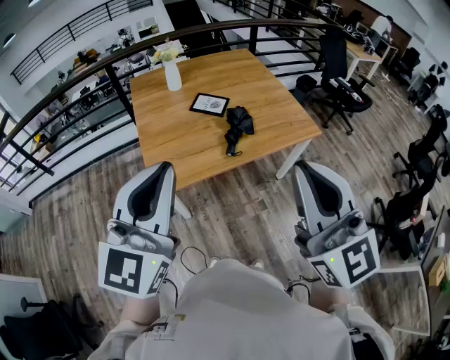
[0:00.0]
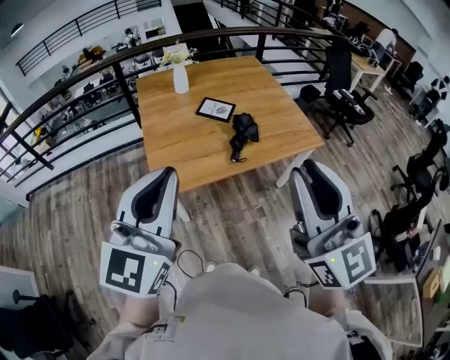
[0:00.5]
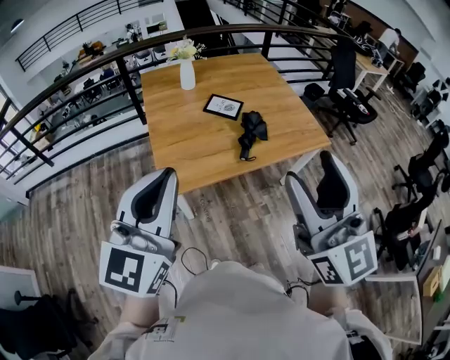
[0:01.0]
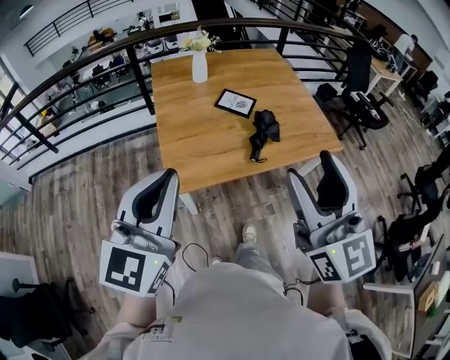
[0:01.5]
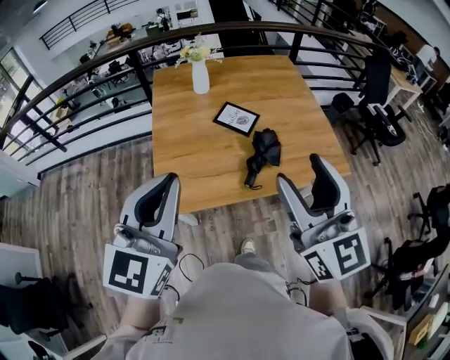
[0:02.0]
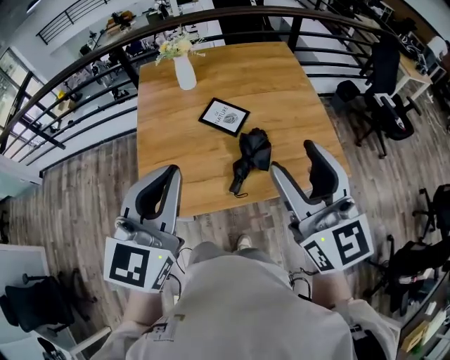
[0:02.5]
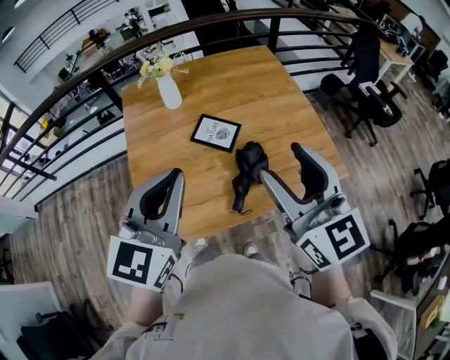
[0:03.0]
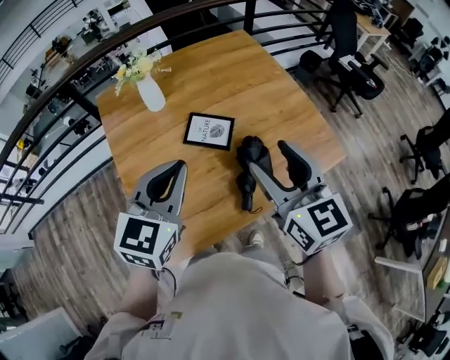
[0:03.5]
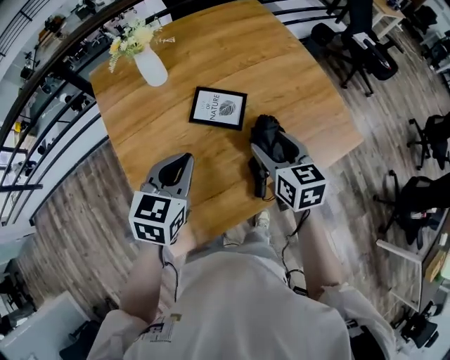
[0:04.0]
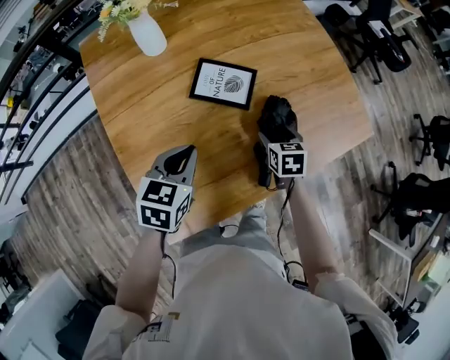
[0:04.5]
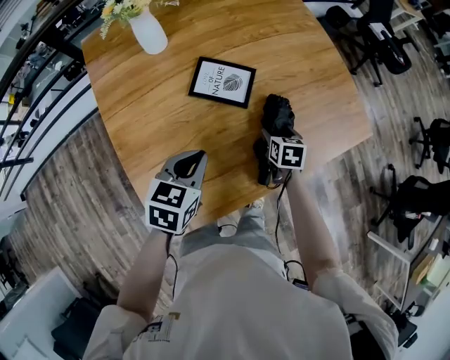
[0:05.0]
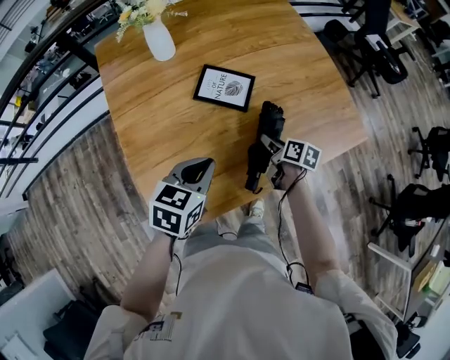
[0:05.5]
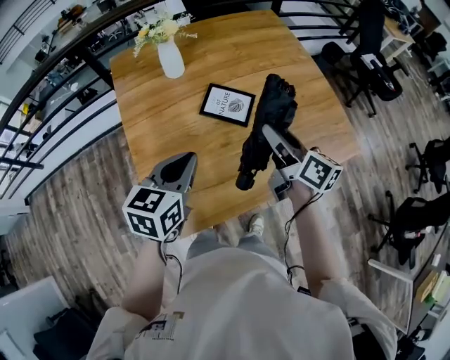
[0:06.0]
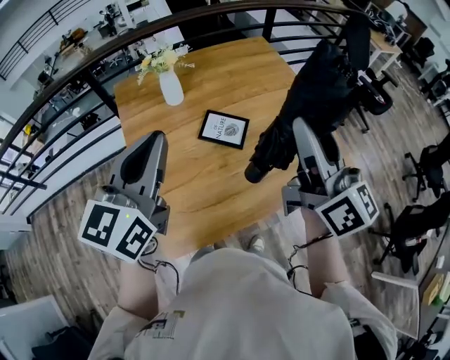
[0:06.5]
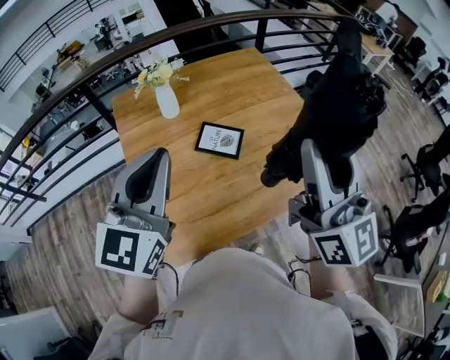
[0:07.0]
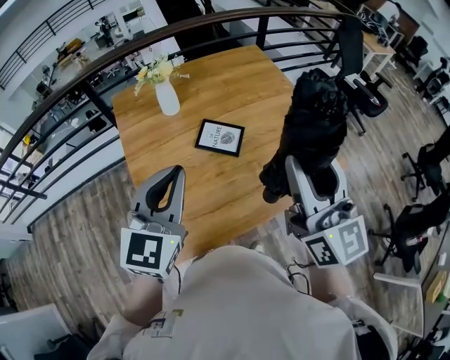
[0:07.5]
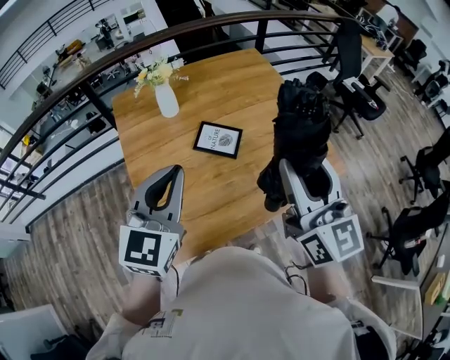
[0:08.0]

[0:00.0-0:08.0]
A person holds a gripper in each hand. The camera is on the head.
0.0 to 2.0 s: The two grippers go about 20 cm forward. The right gripper opens up.
2.0 to 4.0 s: Both grippers travel together forward and downward, some 40 cm. The right gripper tips its fingers downward by some 40 degrees. Meanwhile the left gripper tilts its fingers approximately 30 degrees downward.
4.0 to 6.0 s: The left gripper shifts about 5 cm backward, and moves some 10 cm downward and comes back, while the right gripper goes downward and returns, about 25 cm each way, and swivels about 40 degrees.
6.0 to 8.0 s: The left gripper heads upward, covering approximately 15 cm, and swivels some 30 degrees. The right gripper heads upward and backward, covering some 25 cm, and rolls counterclockwise, seen from behind, by about 40 degrees.

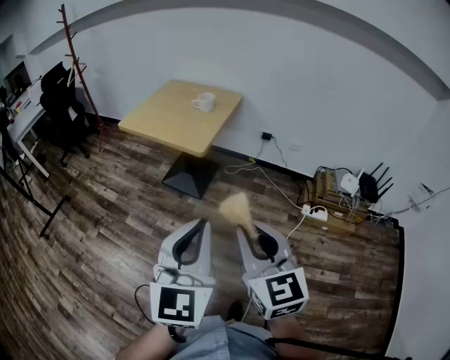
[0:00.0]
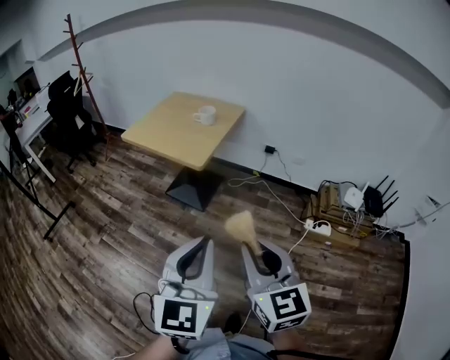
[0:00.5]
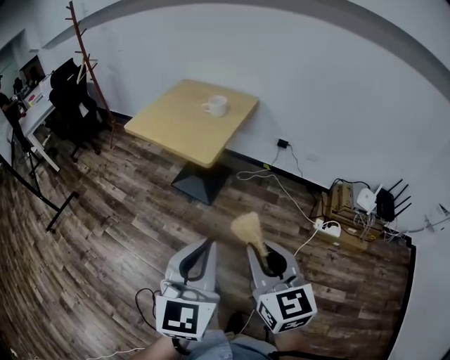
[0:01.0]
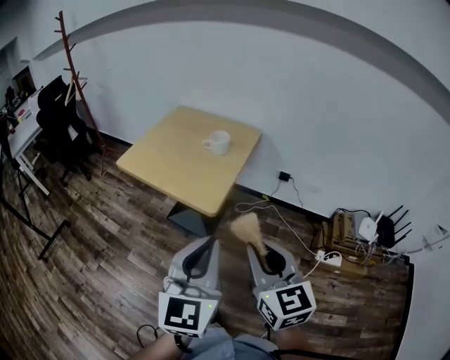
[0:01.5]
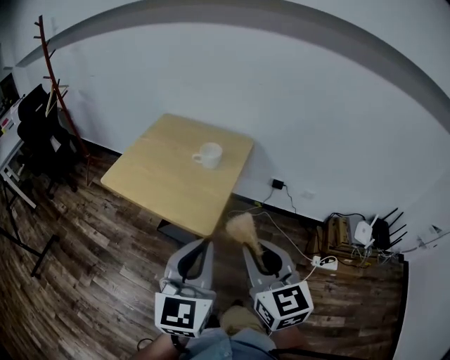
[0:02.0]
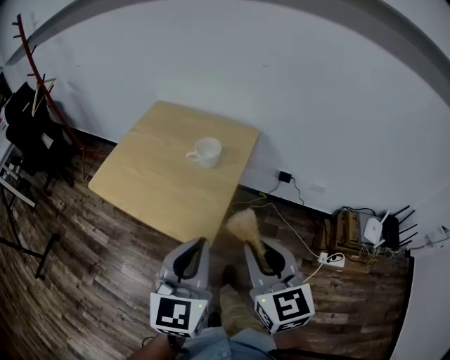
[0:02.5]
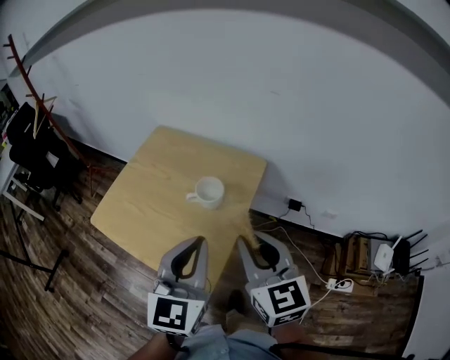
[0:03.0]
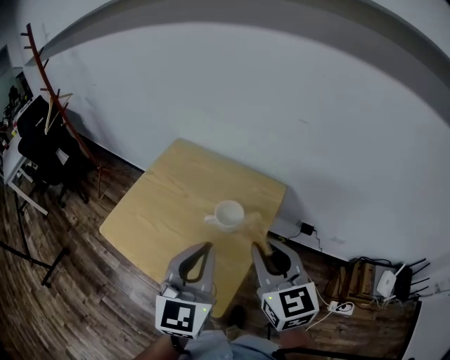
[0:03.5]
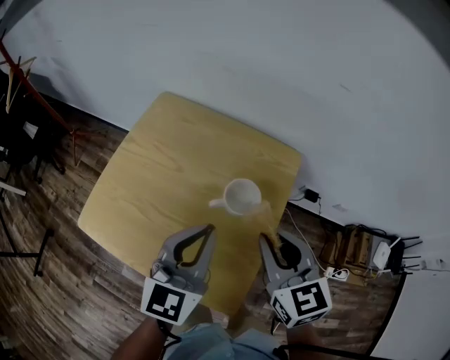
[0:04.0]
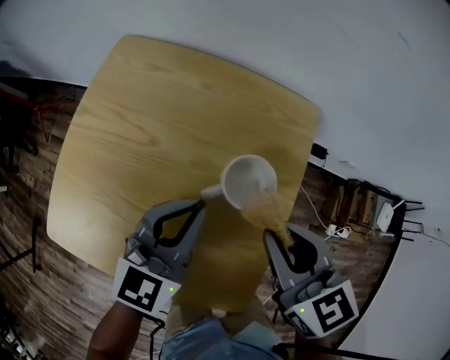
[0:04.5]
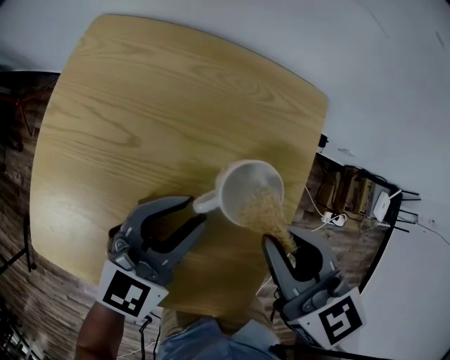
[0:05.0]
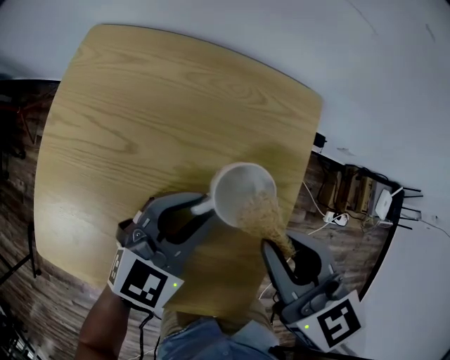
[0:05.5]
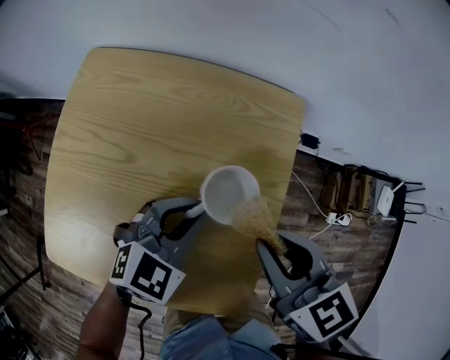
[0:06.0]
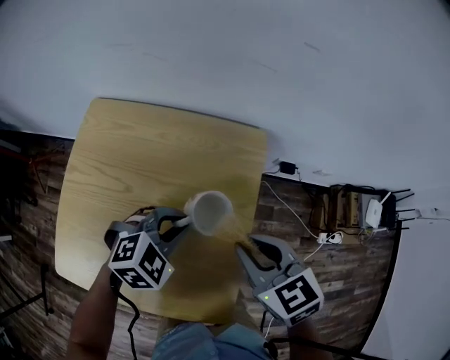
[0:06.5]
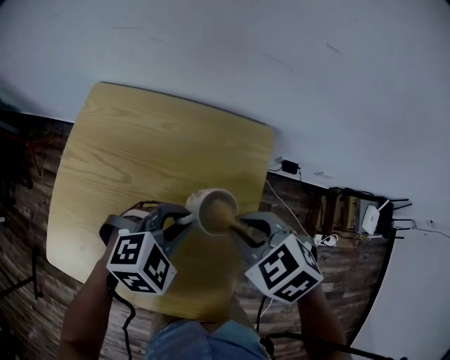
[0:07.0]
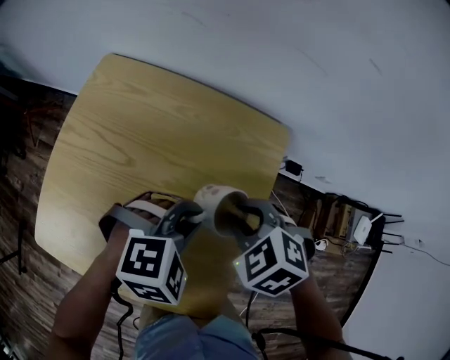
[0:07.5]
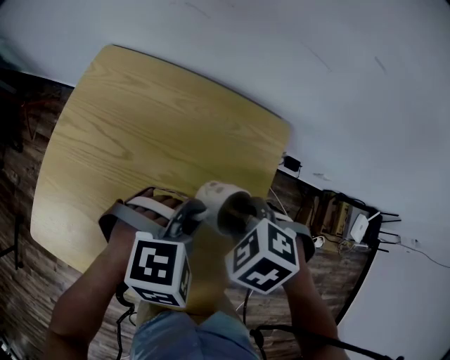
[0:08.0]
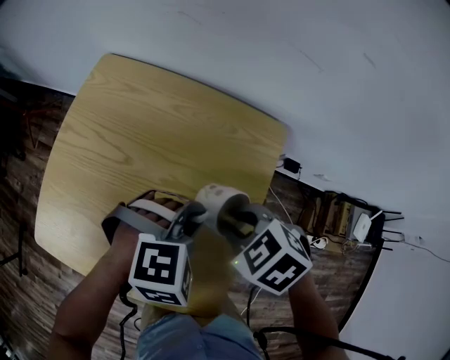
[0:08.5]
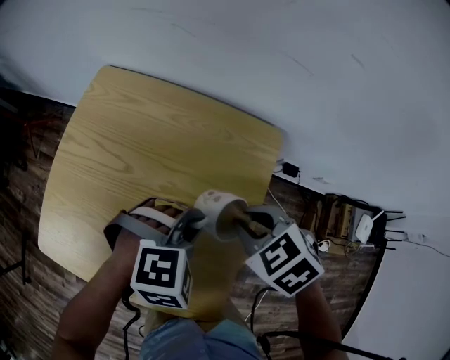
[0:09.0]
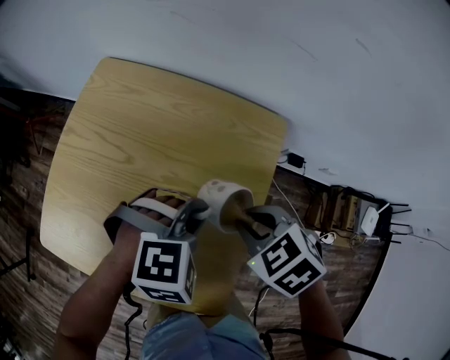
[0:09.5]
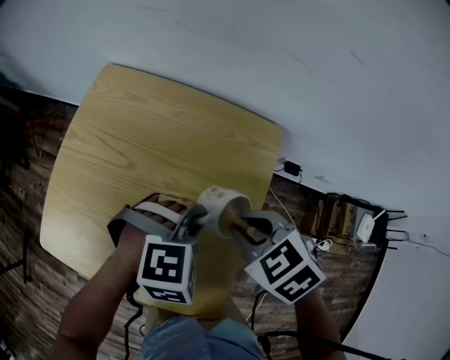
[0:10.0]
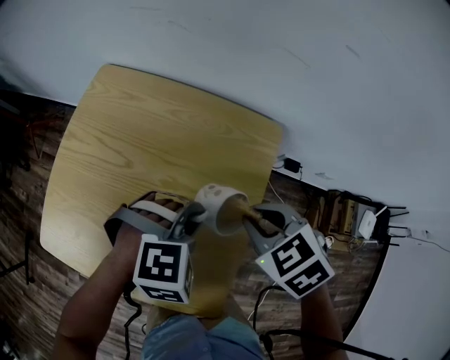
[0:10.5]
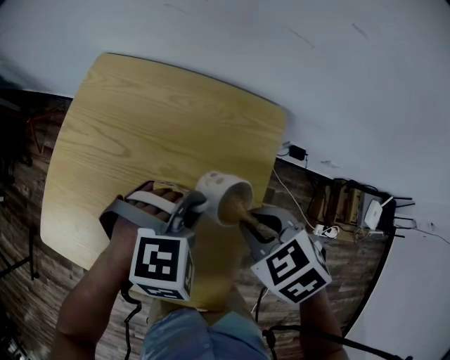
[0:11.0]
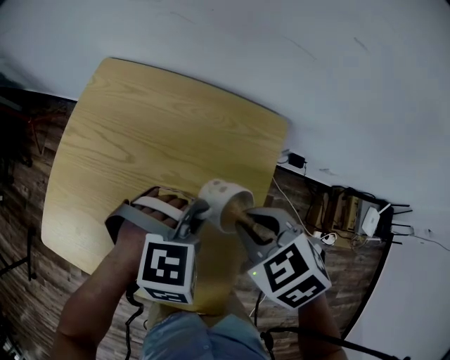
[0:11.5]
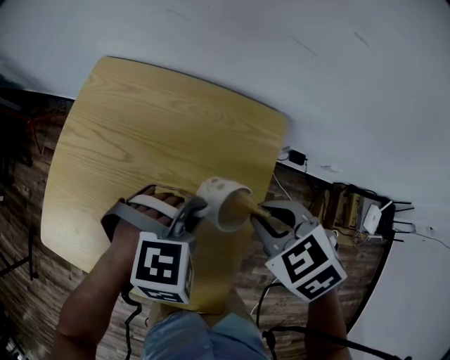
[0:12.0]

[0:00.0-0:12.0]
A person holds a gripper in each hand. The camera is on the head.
0.0 to 2.0 s: The two grippers go some 35 cm forward.
2.0 to 4.0 s: The grippers both shift forward by about 40 cm.
4.0 to 6.0 s: The left gripper travels downward and forward by approximately 20 cm, and turns by approximately 50 degrees. The right gripper heads downward, covering about 10 cm.
6.0 to 8.0 s: The right gripper moves downward, roughly 10 cm, and tilts its fingers roughly 40 degrees downward; the left gripper rotates about 30 degrees.
8.0 to 10.0 s: The right gripper swivels some 20 degrees.
10.0 to 12.0 s: The grippers make only small movements.

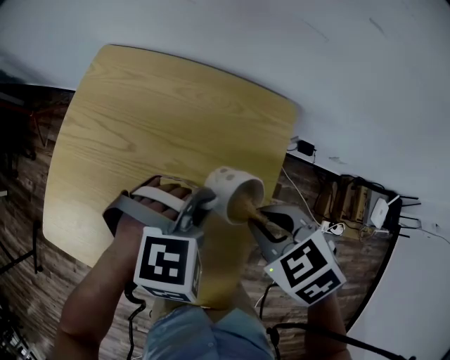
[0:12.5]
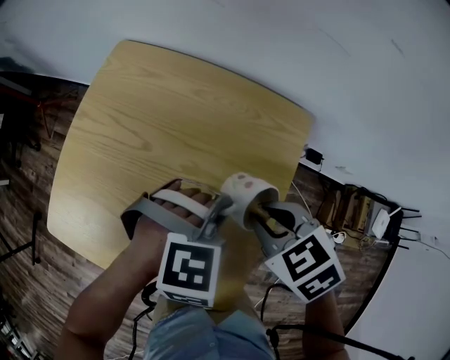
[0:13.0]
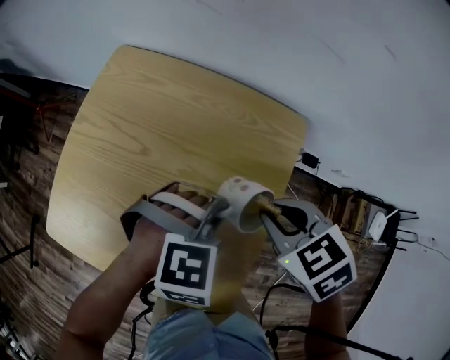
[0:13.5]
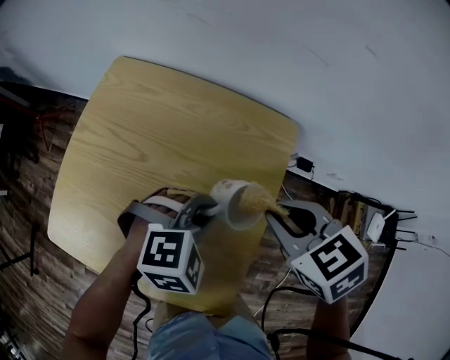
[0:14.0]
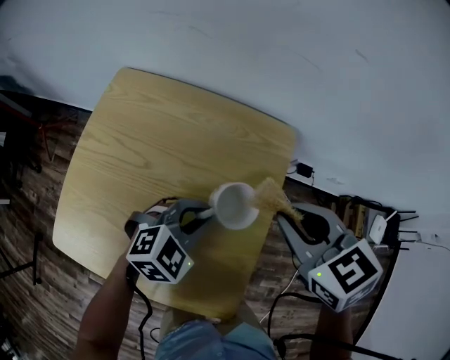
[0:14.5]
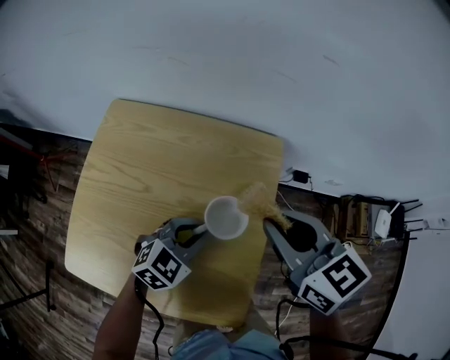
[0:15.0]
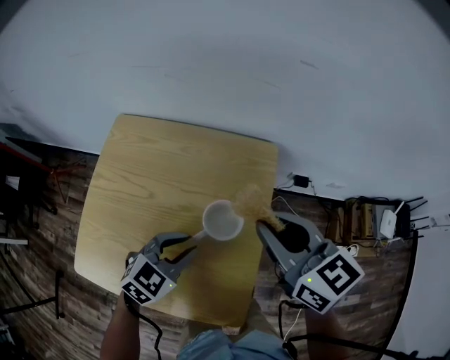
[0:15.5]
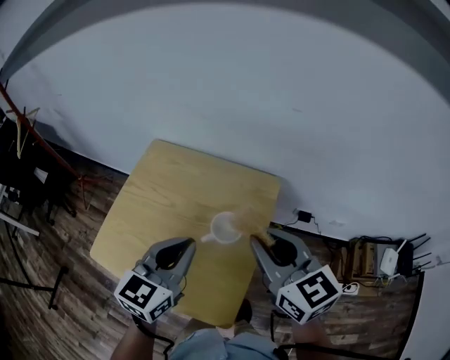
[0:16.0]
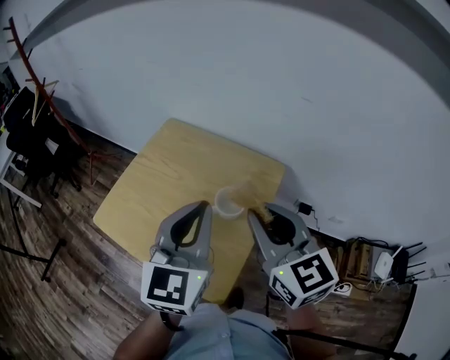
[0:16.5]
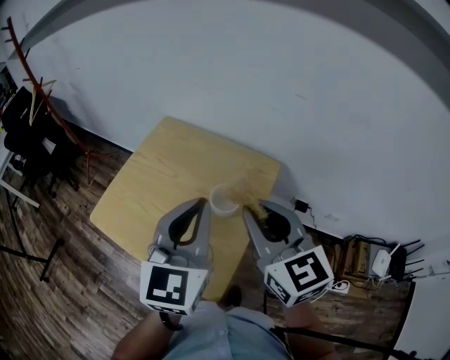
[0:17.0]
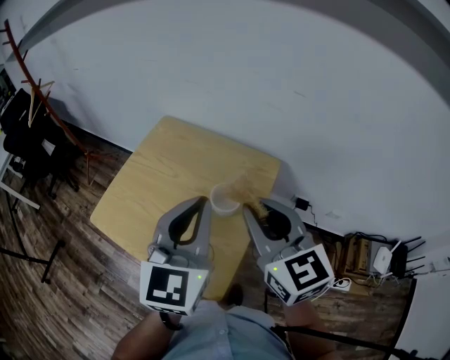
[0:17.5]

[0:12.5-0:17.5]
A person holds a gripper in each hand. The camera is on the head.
12.5 to 15.0 s: The left gripper moves approximately 5 cm, and rotates roughly 40 degrees. Meanwhile the right gripper heads upward, covering roughly 10 cm, and points its fingers approximately 40 degrees further upward.
15.0 to 17.5 s: The left gripper shifts about 30 cm upward, and tips its fingers upward by roughly 30 degrees, while the right gripper heads upward, covering roughly 15 cm, and rotates approximately 20 degrees.

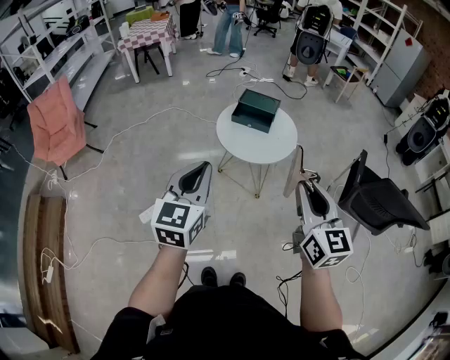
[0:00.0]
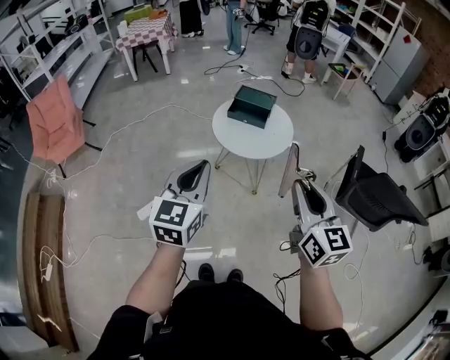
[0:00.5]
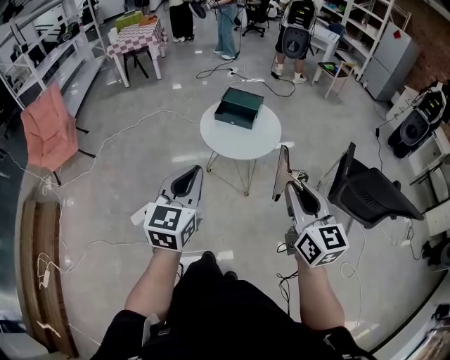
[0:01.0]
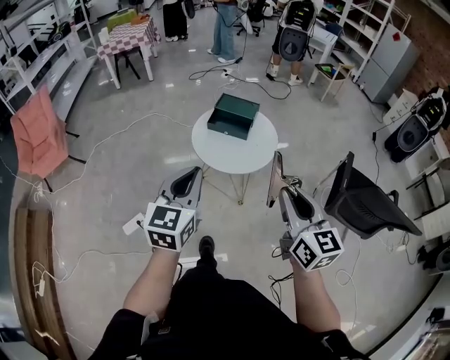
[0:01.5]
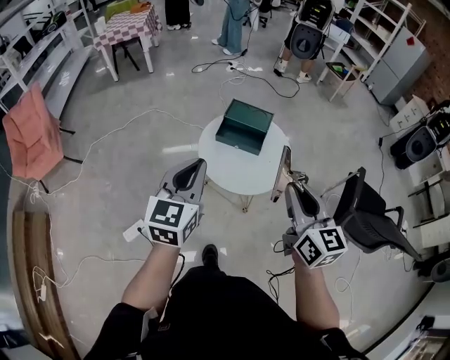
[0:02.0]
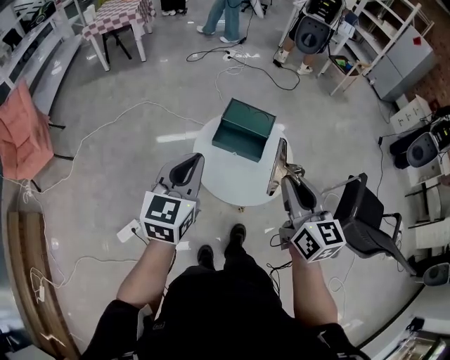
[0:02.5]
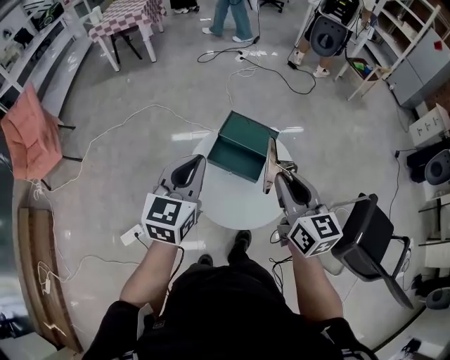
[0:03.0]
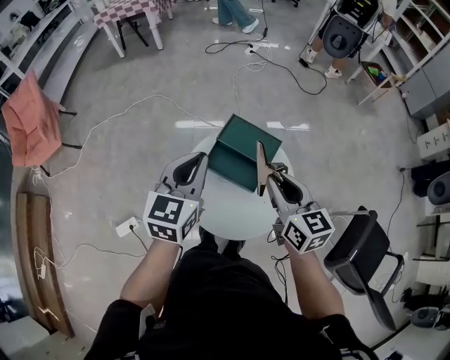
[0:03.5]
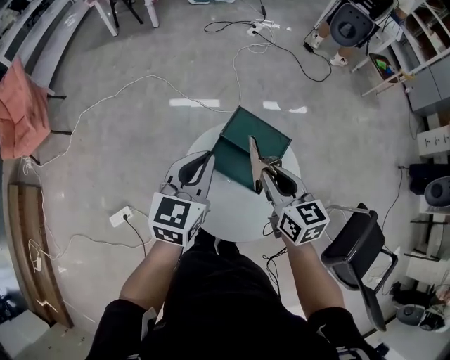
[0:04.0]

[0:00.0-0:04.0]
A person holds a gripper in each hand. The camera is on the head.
0.0 to 2.0 s: Both grippers travel together forward, roughly 20 cm.
2.0 to 4.0 s: The right gripper goes some 40 cm forward and downward, and swivels roughly 30 degrees. The left gripper heads forward, covering about 30 cm.
